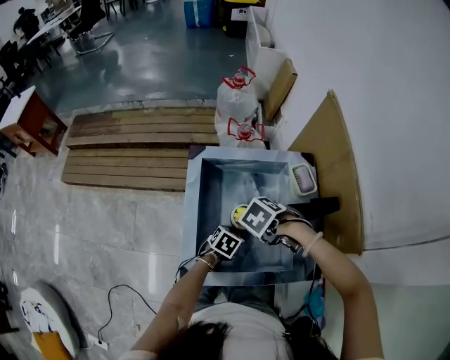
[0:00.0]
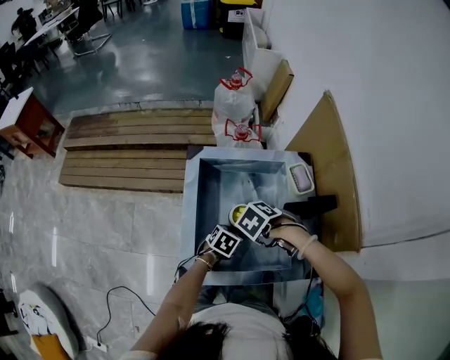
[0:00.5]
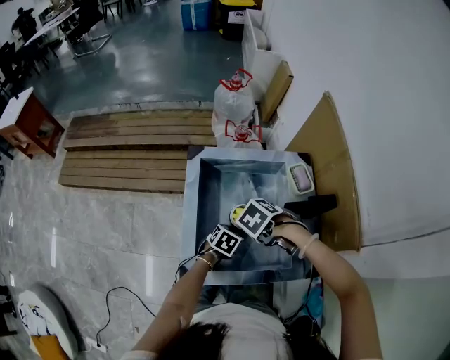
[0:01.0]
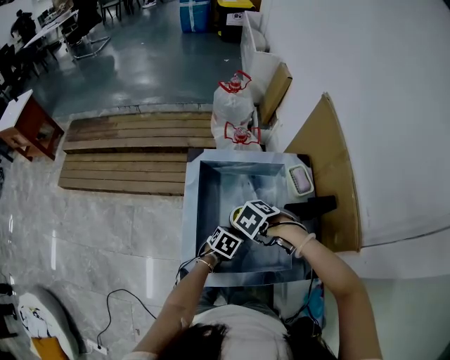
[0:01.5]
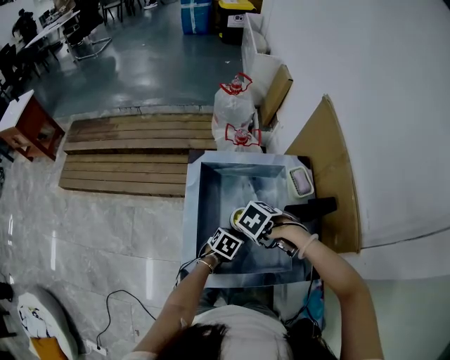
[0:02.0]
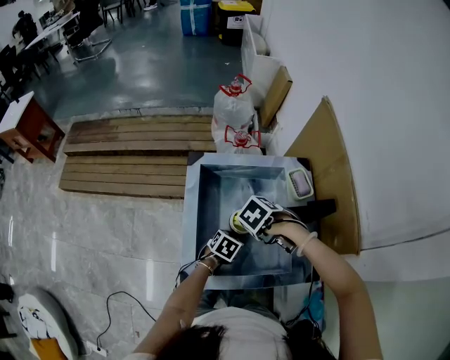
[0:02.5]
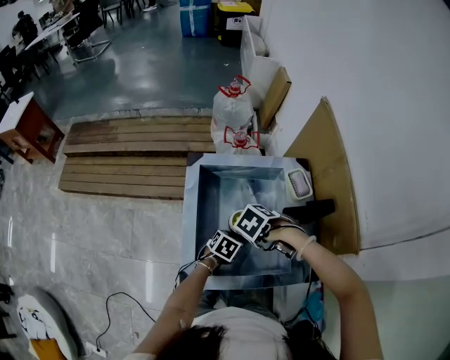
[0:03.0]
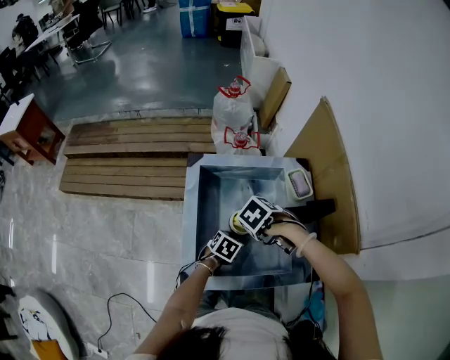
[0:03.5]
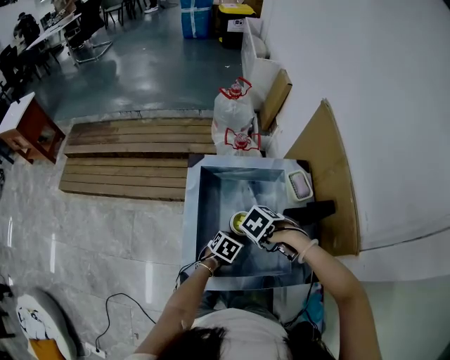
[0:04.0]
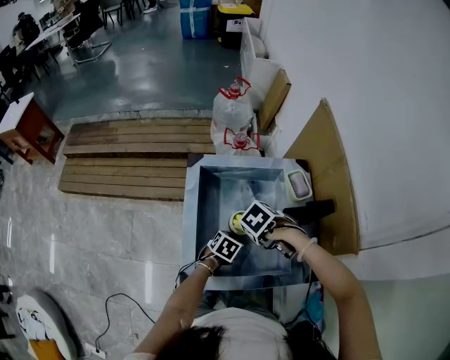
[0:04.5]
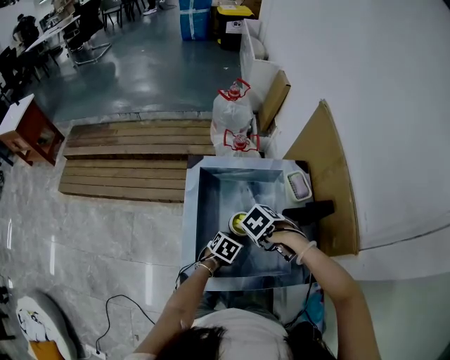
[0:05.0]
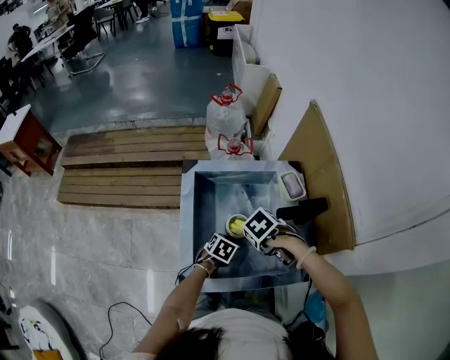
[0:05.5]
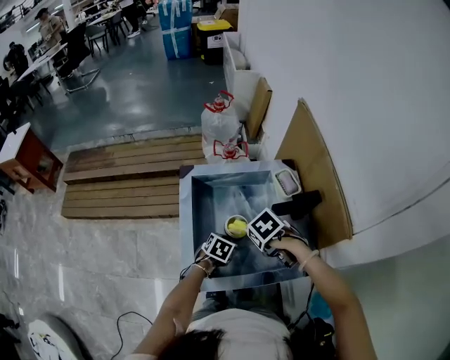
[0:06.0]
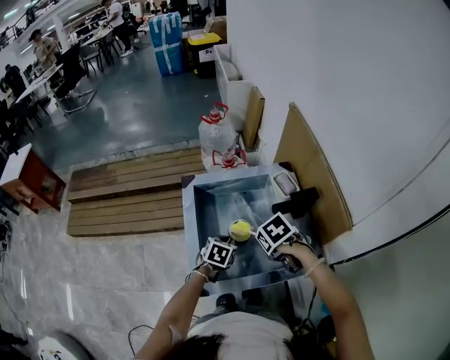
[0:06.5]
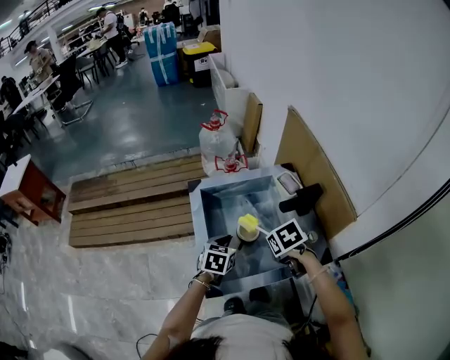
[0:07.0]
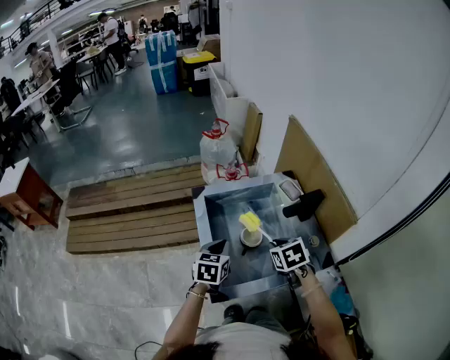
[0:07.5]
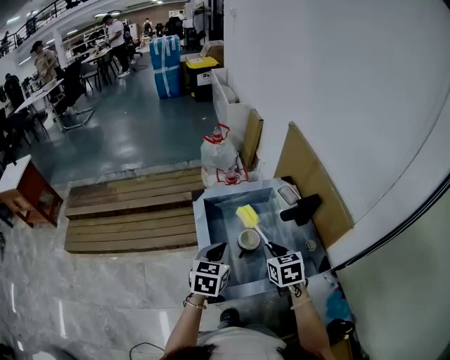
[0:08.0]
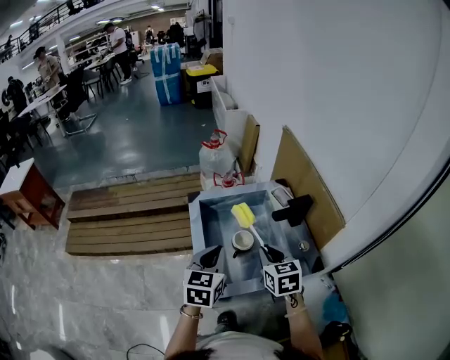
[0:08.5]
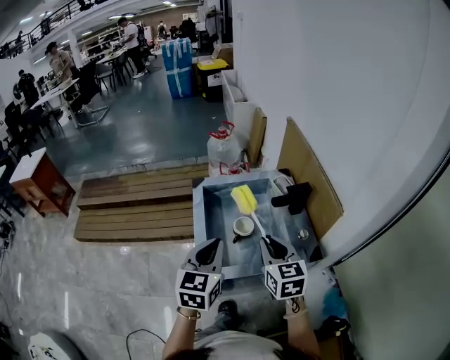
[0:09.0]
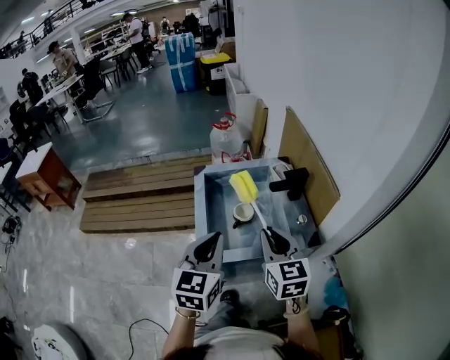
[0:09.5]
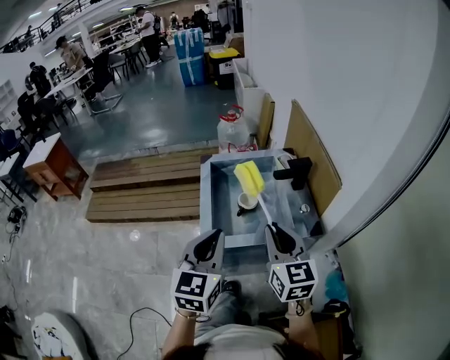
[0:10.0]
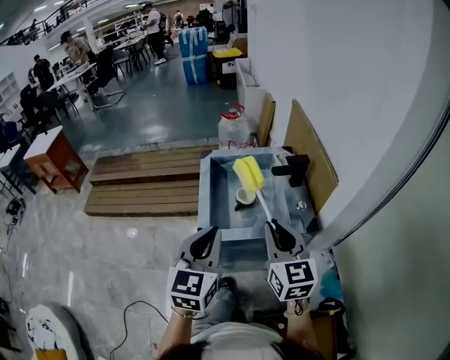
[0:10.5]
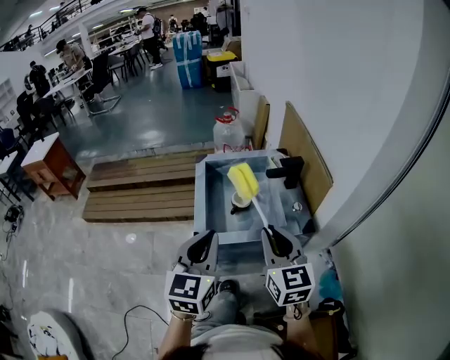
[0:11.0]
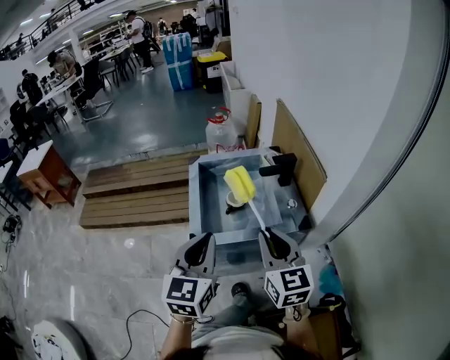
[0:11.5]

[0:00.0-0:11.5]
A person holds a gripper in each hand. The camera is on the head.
0:00.0 to 0:04.0: The grippers make only small movements.
0:04.0 to 0:06.0: The right gripper turns by some 20 degrees.
0:06.0 to 0:07.5: The right gripper travels upward by approximately 5 cm, and rotates roughly 40 degrees. The left gripper shifts some 15 cm upward, and changes its angle by some 30 degrees.
0:07.5 to 0:09.5: Both grippers travel together upward and backward, approximately 25 cm. The right gripper angles its fingers upward, by about 40 degrees; the left gripper changes its angle by some 30 degrees.
0:09.5 to 0:11.5: Both grippers move backward, approximately 10 cm.

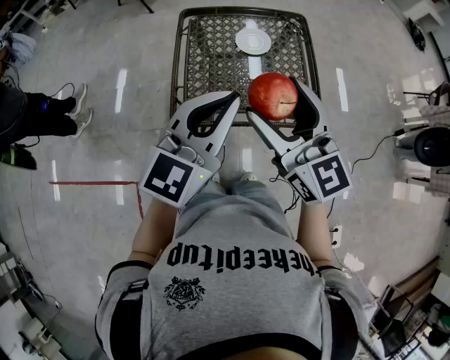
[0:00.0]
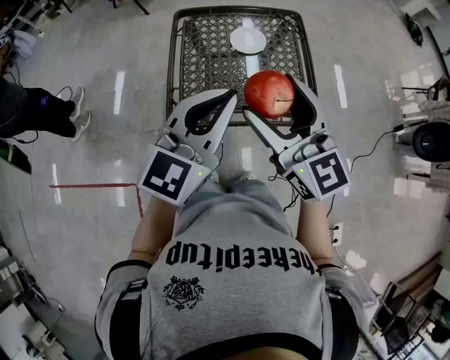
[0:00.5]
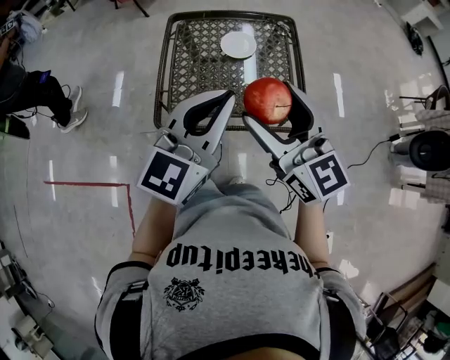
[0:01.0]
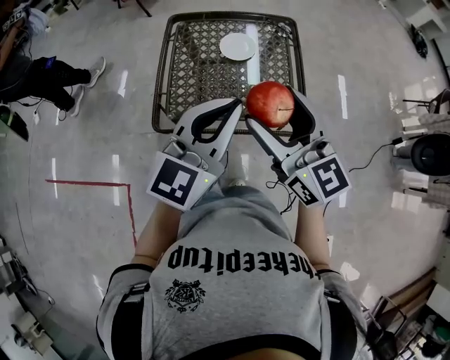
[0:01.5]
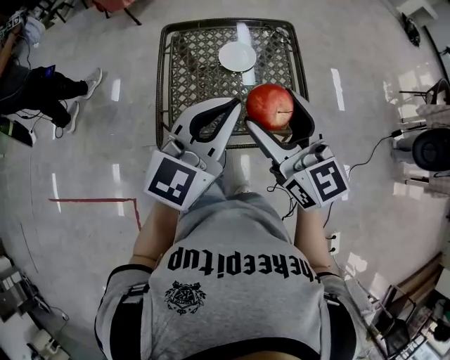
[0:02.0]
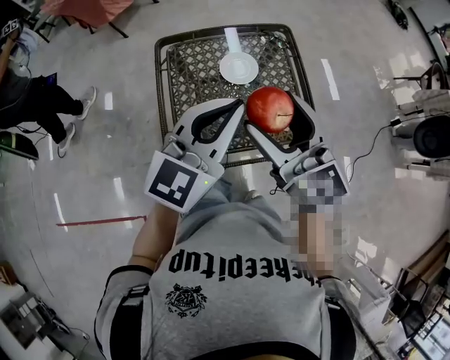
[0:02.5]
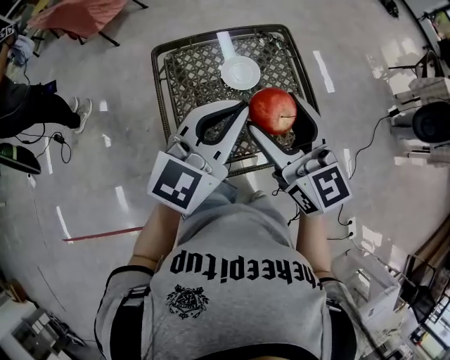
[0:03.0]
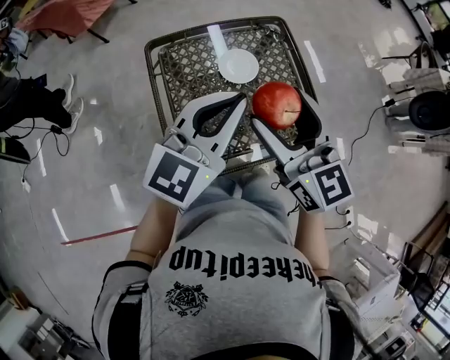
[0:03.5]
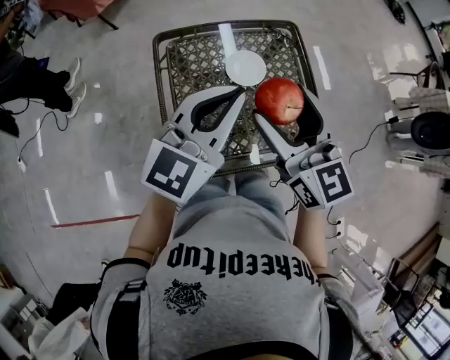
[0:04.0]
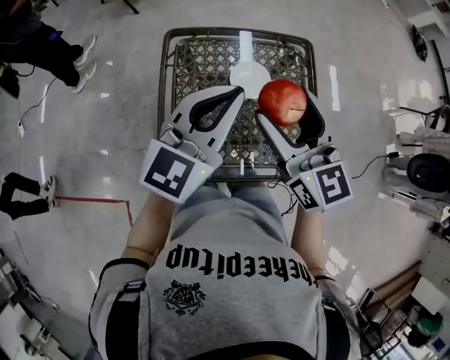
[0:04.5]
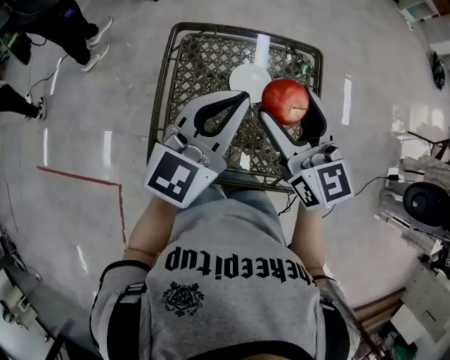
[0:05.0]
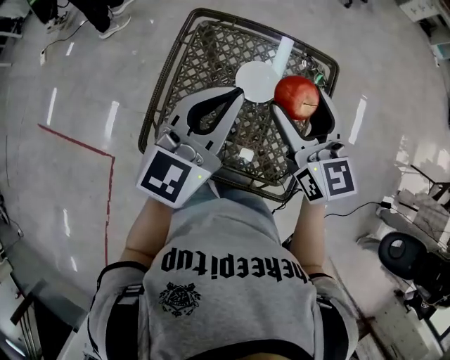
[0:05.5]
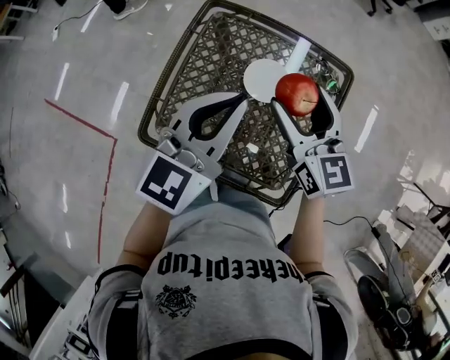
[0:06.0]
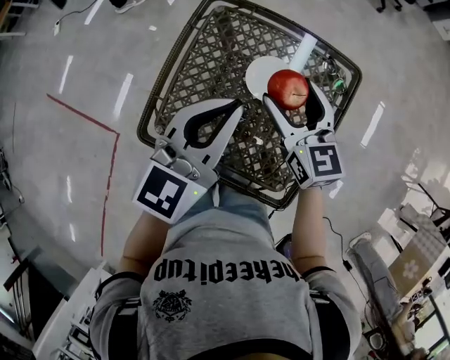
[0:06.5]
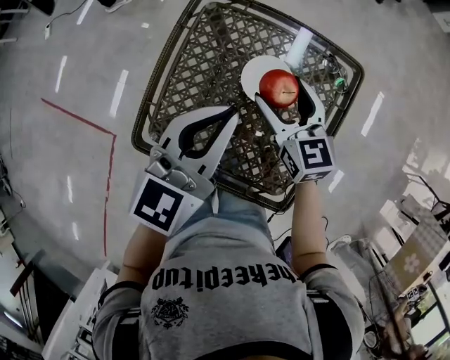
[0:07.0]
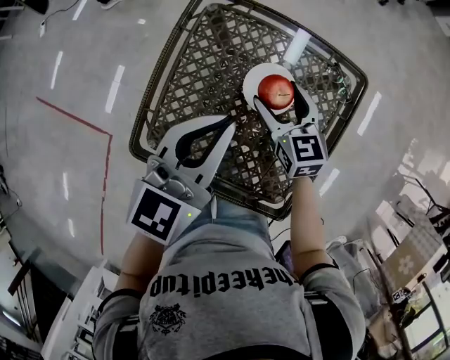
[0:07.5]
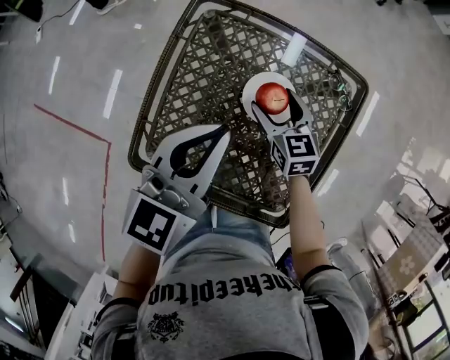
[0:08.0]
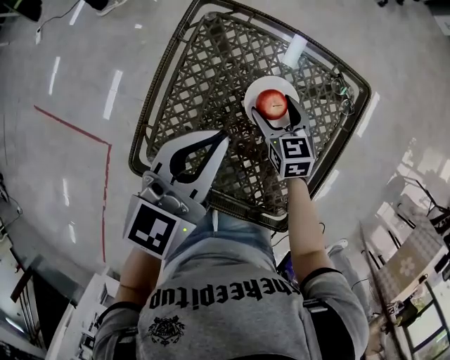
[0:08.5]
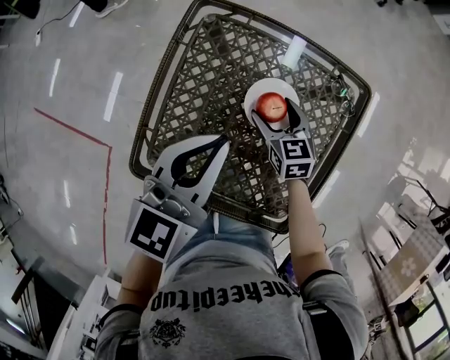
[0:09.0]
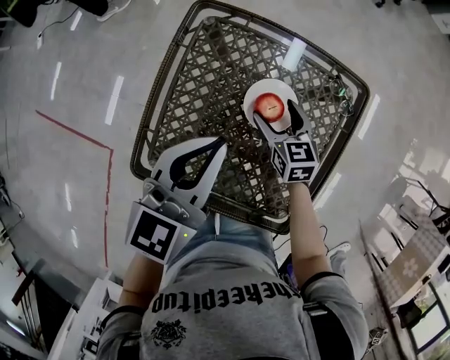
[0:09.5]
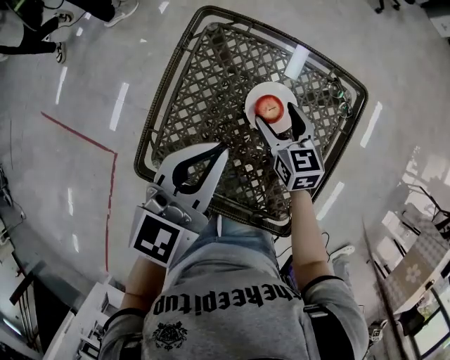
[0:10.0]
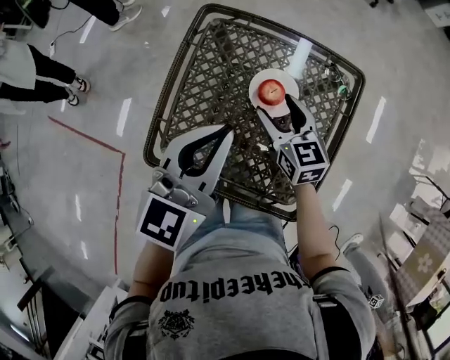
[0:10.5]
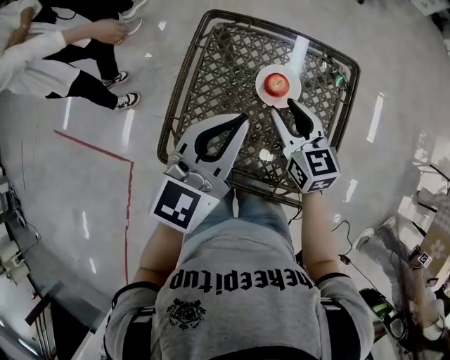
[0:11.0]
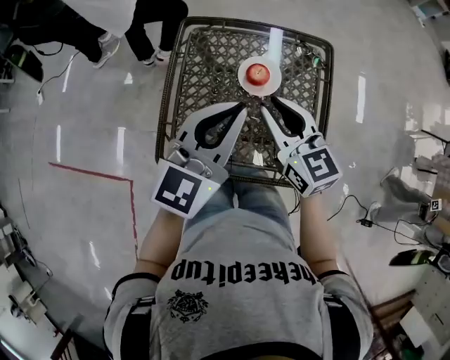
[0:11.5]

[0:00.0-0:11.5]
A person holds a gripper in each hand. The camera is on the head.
0:00.0 to 0:02.0: The left gripper travels forward and to the right by approximately 10 cm. The right gripper is displaced forward by roughly 5 cm.
0:02.0 to 0:04.0: The grippers both shift forward and to the left by some 15 cm.
0:04.0 to 0:06.0: The left gripper ends up some 10 cm from where it was, and changes its angle by roughly 30 degrees, while the right gripper shifts by approximately 20 cm, and swivels roughly 30 degrees.
0:06.0 to 0:07.5: The left gripper travels downward by some 5 cm. Meanwhile the right gripper goes roughly 20 cm downward.
0:07.5 to 0:09.5: The right gripper shifts roughly 5 cm downward.
0:09.5 to 0:11.5: The right gripper shifts roughly 25 cm upward and backward, swivels some 20 degrees, and closes, while the left gripper is displaced backward and upward by roughly 10 cm.

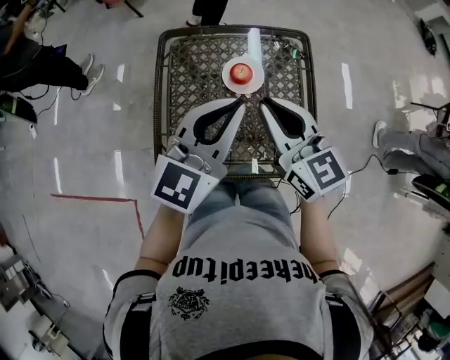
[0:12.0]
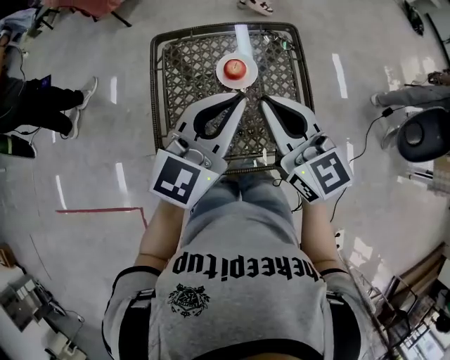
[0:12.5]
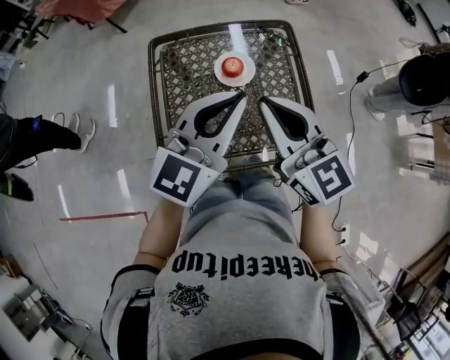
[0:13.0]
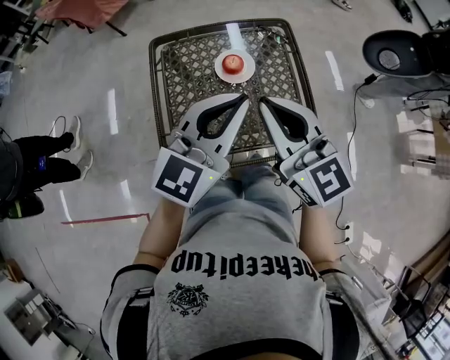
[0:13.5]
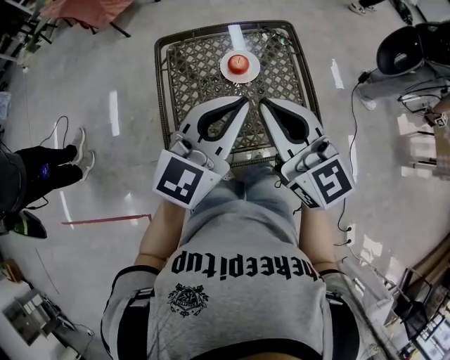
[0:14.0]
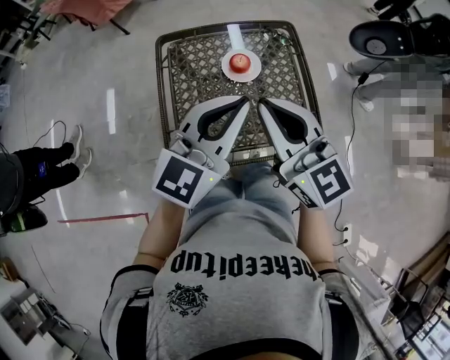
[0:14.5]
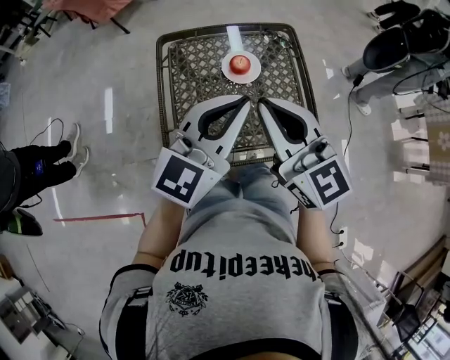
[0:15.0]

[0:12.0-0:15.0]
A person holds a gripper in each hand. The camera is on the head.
0:12.0 to 0:13.5: The left gripper heads backward, covering some 5 cm, while the right gripper shifts about 10 cm backward and upward.
0:13.5 to 0:15.0: The grippers stay close to where they were, moving slightly.

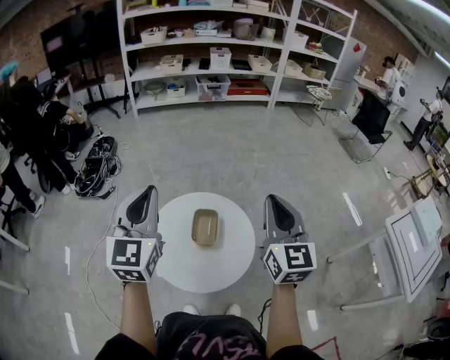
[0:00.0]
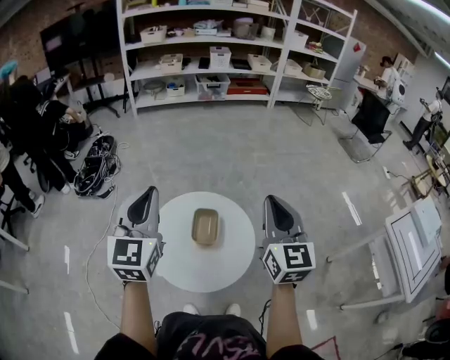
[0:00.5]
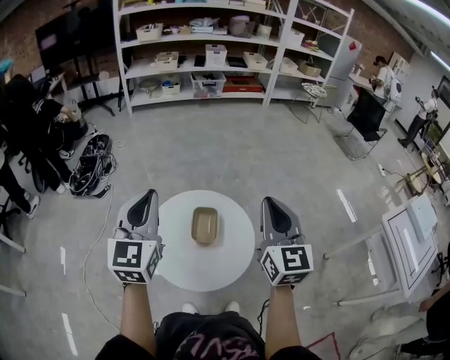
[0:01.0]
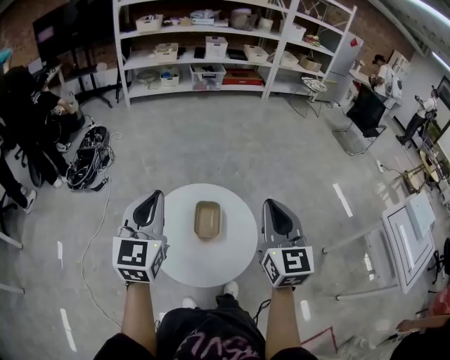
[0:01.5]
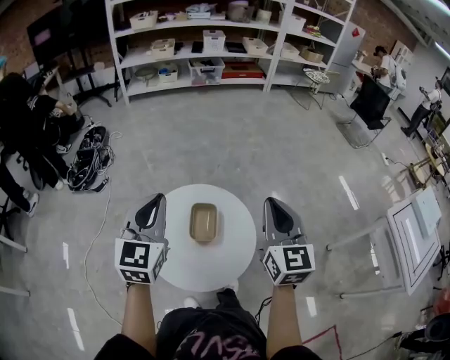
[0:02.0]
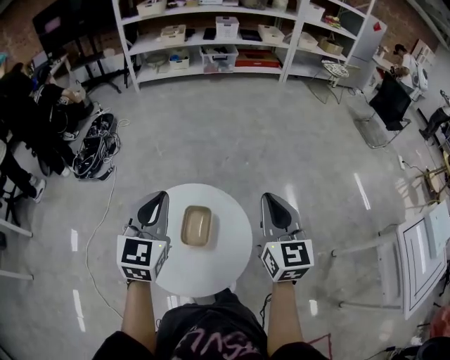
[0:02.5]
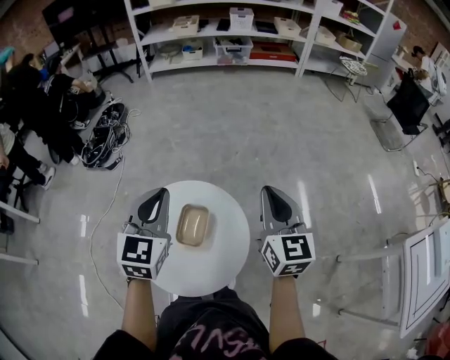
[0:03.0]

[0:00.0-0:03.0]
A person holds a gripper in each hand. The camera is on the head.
0:00.0 to 0:01.5: The right gripper heads to the left, covering approximately 5 cm; the left gripper is displaced downward by approximately 5 cm.
0:01.5 to 0:03.0: The right gripper travels forward, to the right and downward by some 25 cm, while the left gripper shifts approximately 25 cm to the right, forward and downward.
